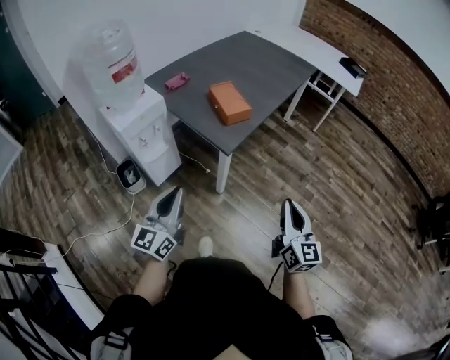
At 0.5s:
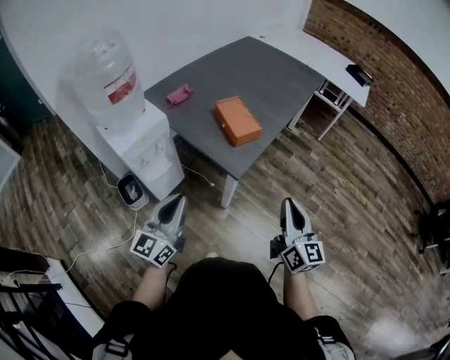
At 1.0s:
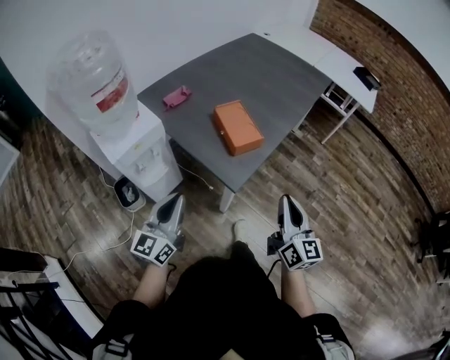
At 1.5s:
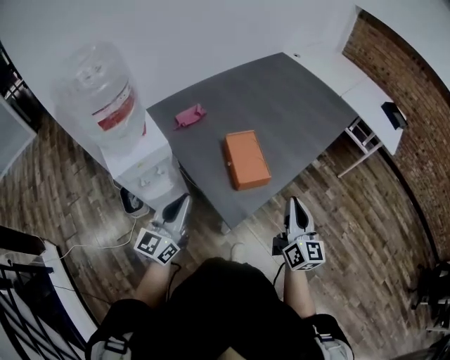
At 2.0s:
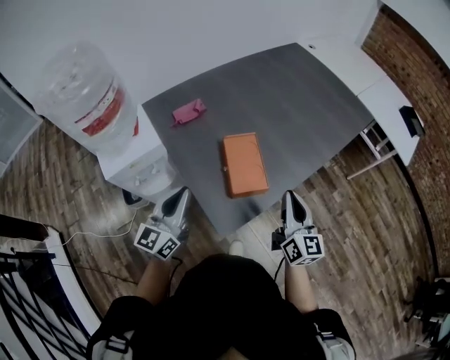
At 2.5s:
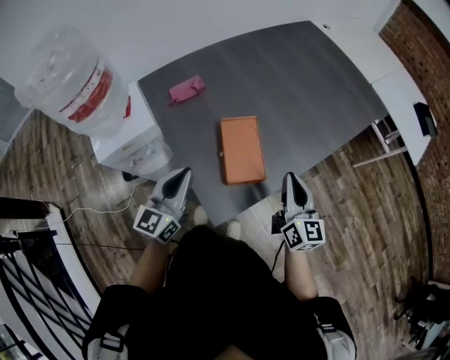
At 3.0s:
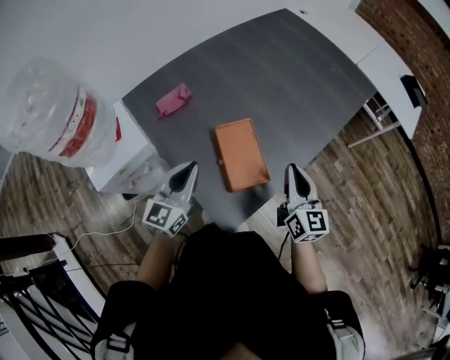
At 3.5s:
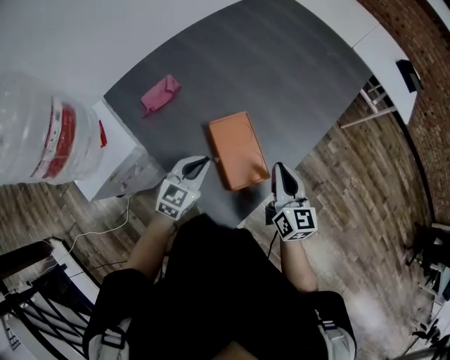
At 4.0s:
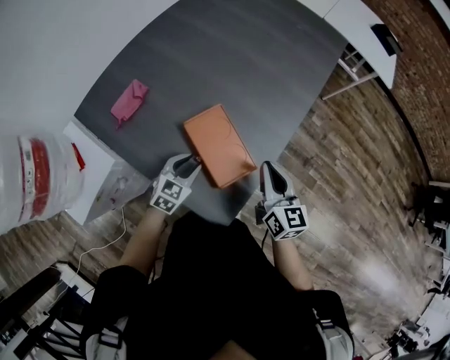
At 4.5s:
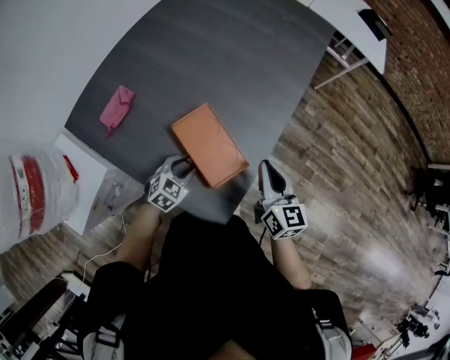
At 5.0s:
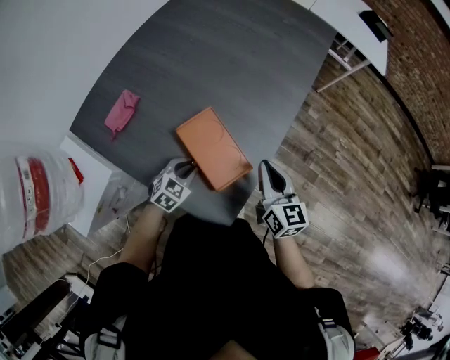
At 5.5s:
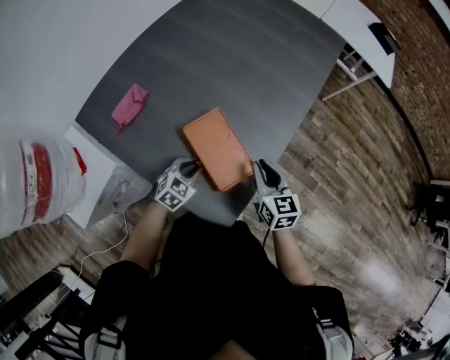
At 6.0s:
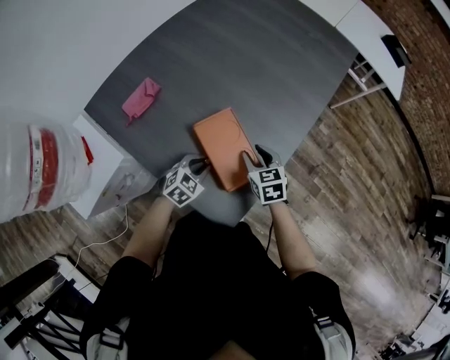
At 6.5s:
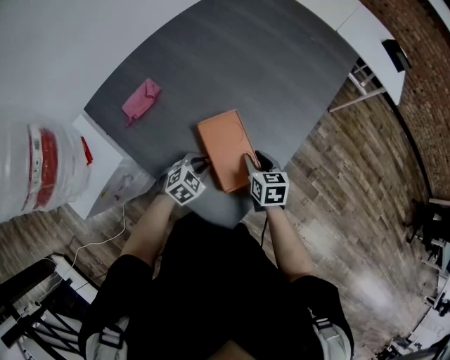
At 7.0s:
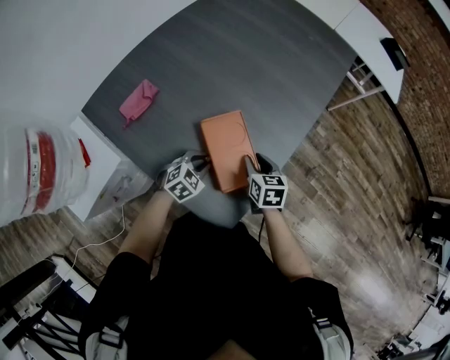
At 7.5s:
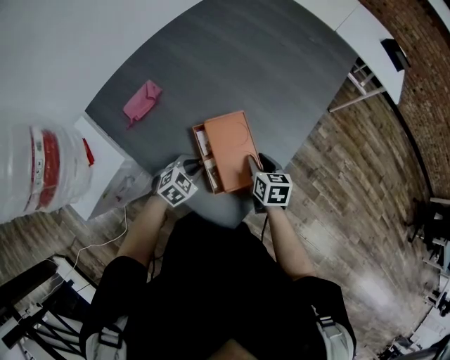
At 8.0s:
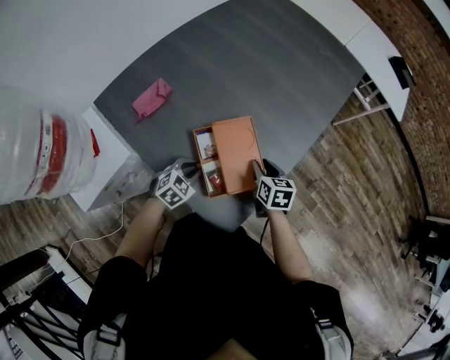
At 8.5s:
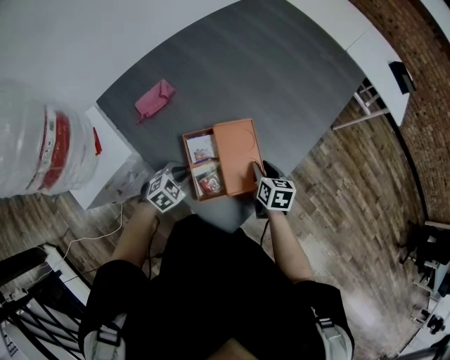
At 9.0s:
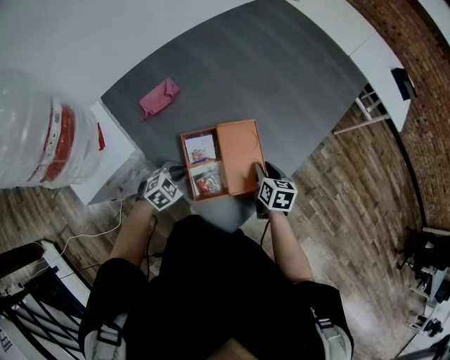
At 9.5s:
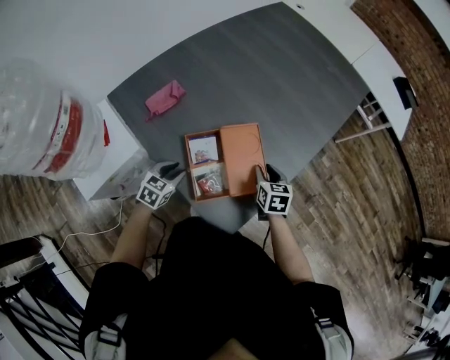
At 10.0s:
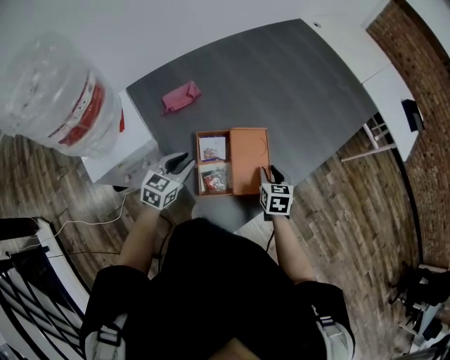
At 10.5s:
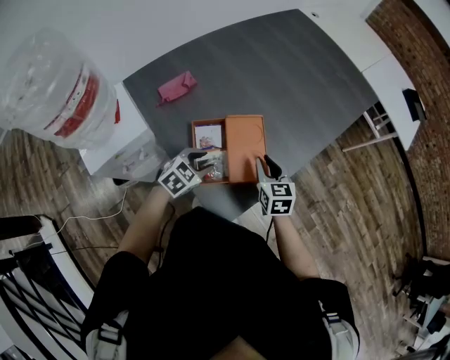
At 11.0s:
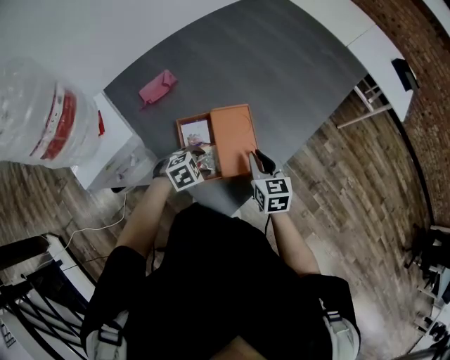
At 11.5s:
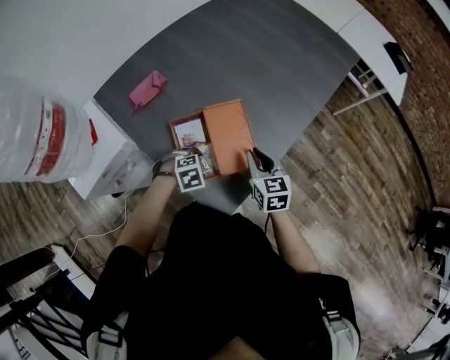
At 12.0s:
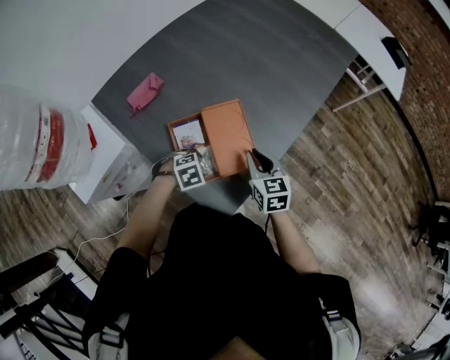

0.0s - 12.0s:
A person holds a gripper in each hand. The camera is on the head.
0.0s - 2.0s: Both grippers travel together forward, some 35 cm.
2.0s - 4.0s: The right gripper goes roughly 5 cm downward, and changes its angle by some 20 degrees. The left gripper shifts approximately 20 cm downward, tilts its fingers some 40 degrees downward, and opens.
4.0s - 6.0s: The right gripper shifts about 15 cm downward and to the left, changes its angle by about 30 degrees, and opens up.
8.0s - 10.0s: The left gripper heads upward and to the left, covering some 15 cm, and swivels about 40 degrees.
10.0s - 12.0s: The right gripper shifts by about 5 cm. Meanwhile the left gripper goes about 10 cm downward, tips its fingers downward by some 50 degrees, and opens its fingers.

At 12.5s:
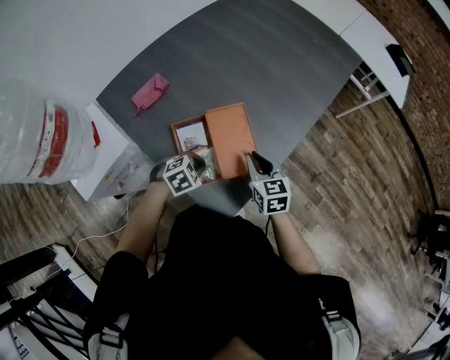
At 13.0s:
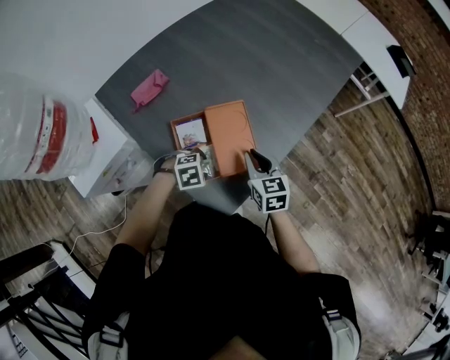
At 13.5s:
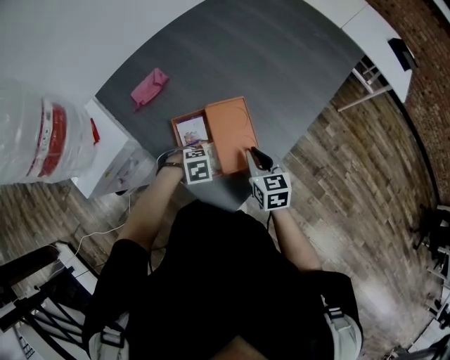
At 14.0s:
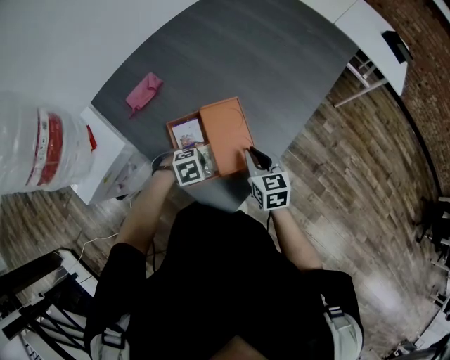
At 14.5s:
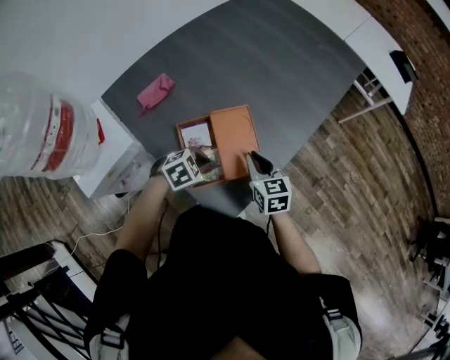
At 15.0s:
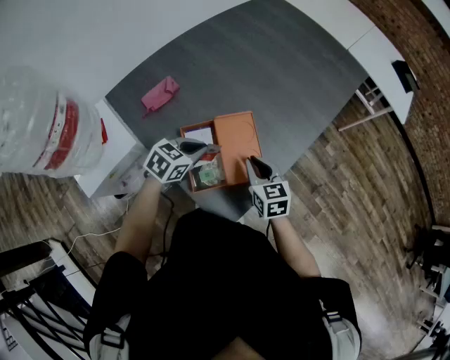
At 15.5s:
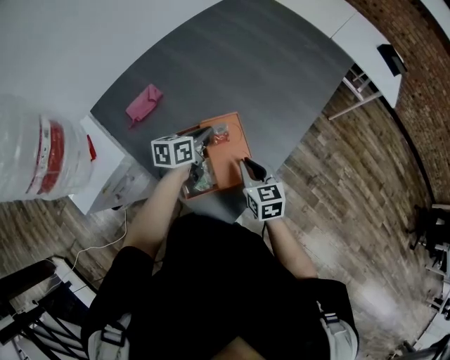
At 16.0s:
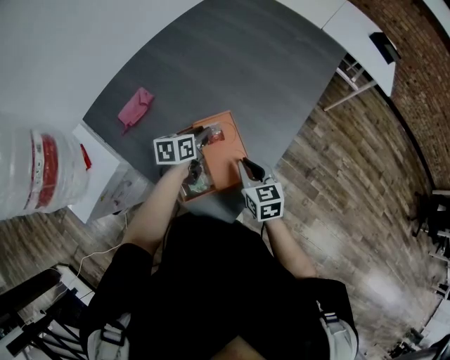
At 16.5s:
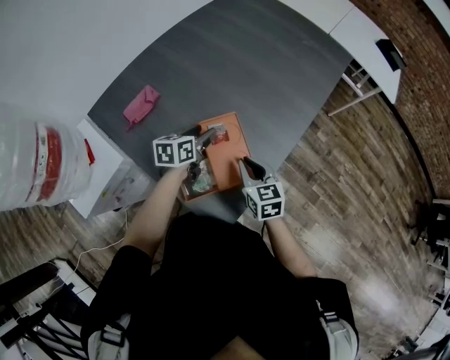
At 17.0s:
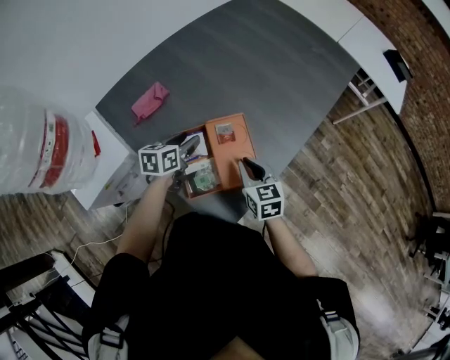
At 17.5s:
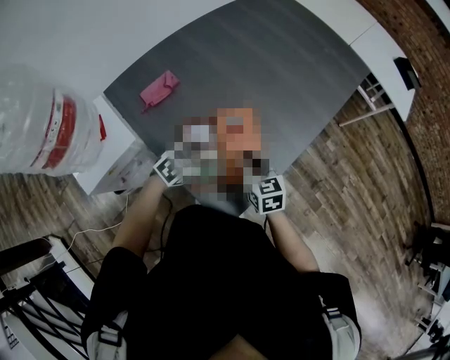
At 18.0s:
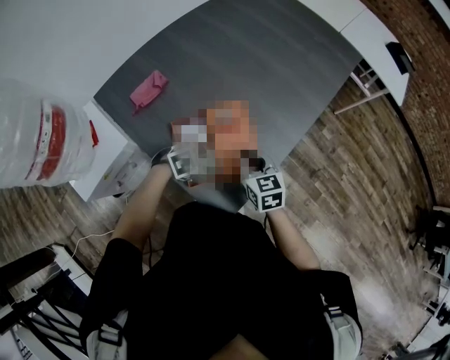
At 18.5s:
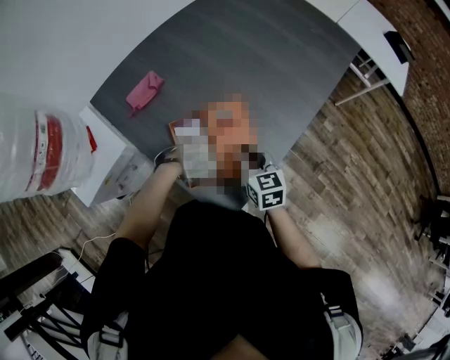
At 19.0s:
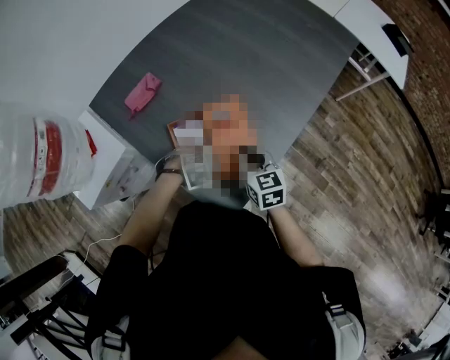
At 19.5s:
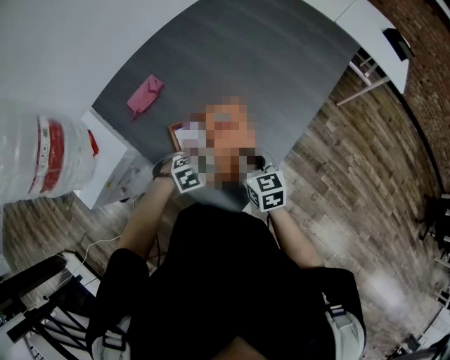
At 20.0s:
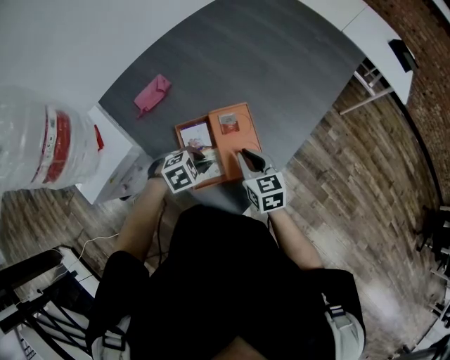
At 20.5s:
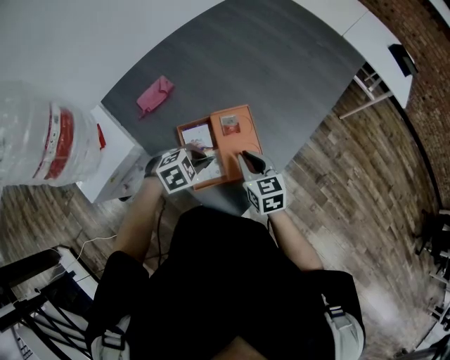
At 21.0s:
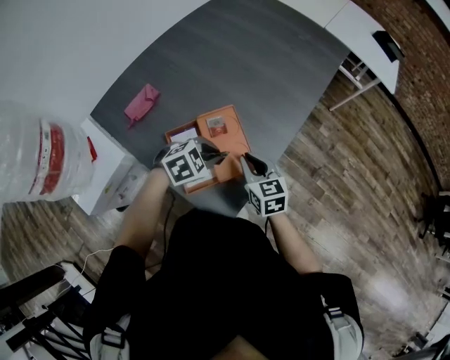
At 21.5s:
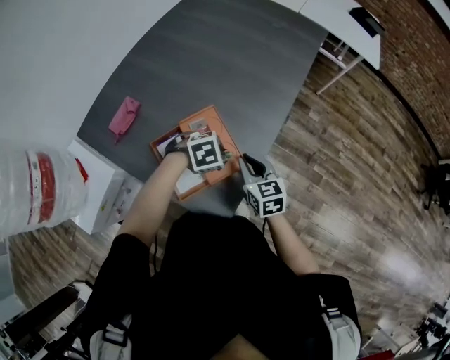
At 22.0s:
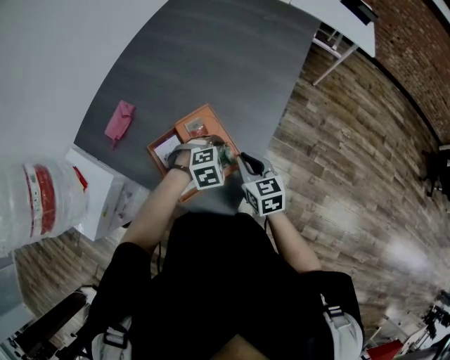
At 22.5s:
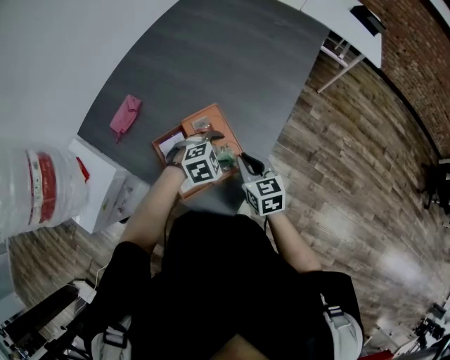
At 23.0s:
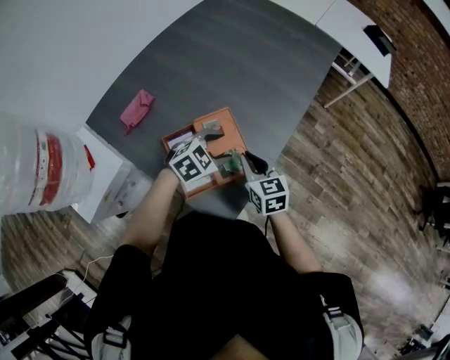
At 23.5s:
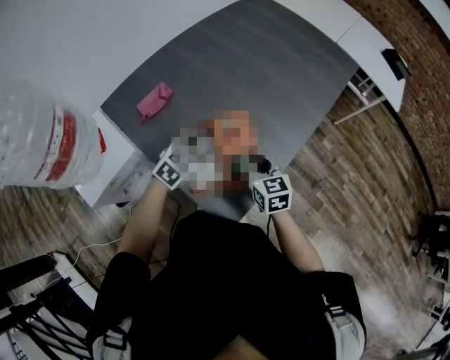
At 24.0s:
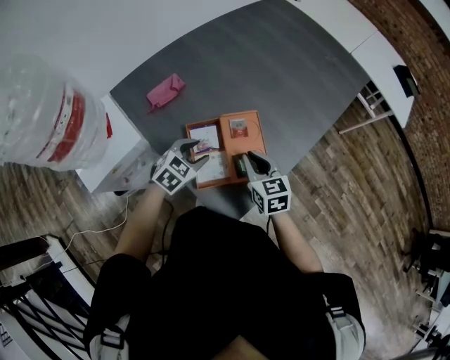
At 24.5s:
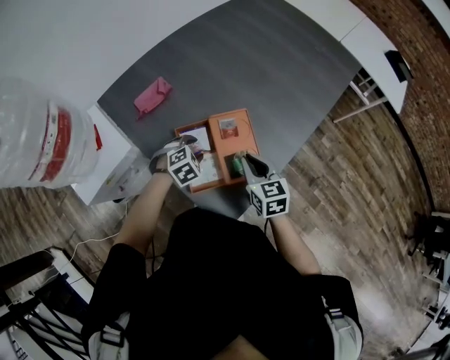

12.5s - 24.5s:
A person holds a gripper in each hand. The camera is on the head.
12.5s - 14.5s: The left gripper opens and closes again.
14.5s - 16.5s: The left gripper heads forward, covering about 15 cm, rolls counterclockwise, seen from behind, by about 50 degrees, and opens its fingers.
16.5s - 18.5s: The left gripper ends up approximately 20 cm from where it was, and angles its fingers downward, by about 40 degrees.
18.5s - 20.5s: The left gripper goes roughly 10 cm upward, turns by roughly 20 degrees, and closes.
20.5s - 22.5s: The left gripper is displaced to the right and forward by about 15 cm, and opens, while the right gripper moves to the right, roughly 5 cm.
22.5s - 24.5s: The left gripper is displaced to the left by some 15 cm, swivels about 30 degrees, and closes up.

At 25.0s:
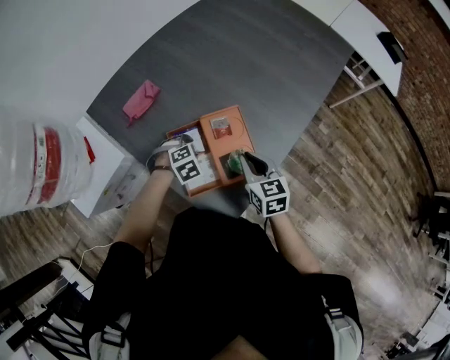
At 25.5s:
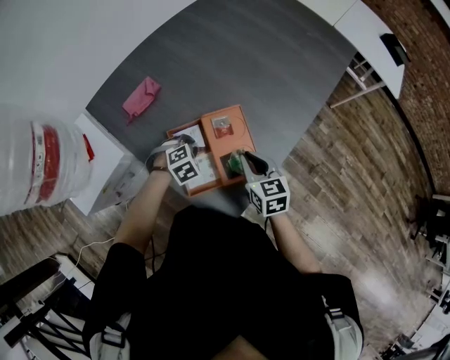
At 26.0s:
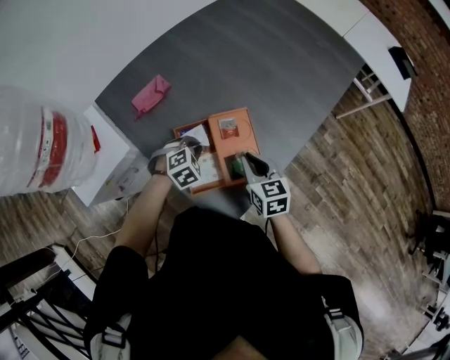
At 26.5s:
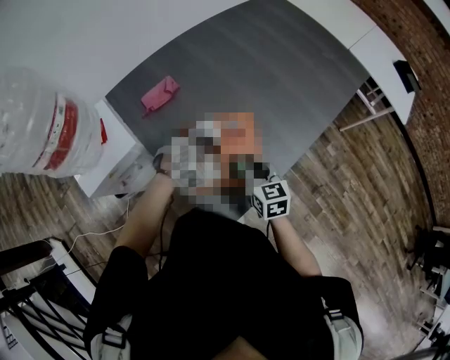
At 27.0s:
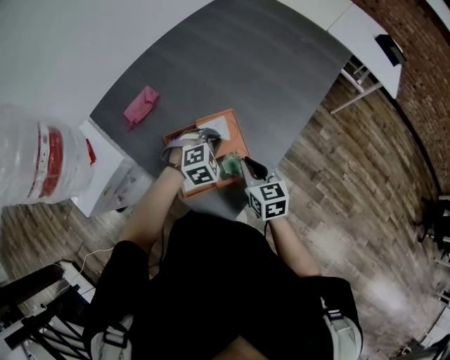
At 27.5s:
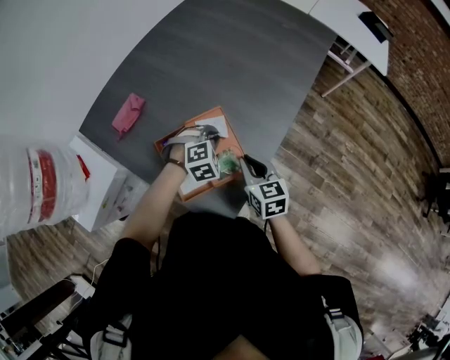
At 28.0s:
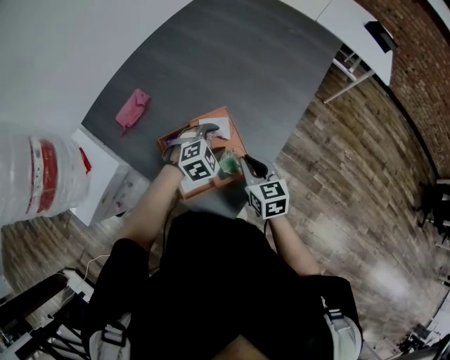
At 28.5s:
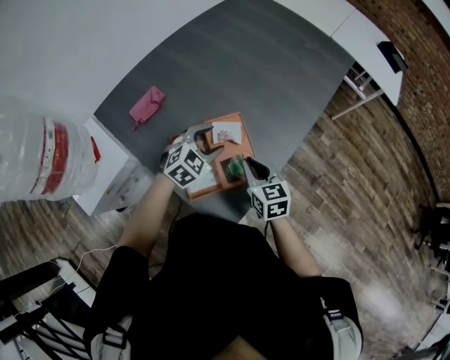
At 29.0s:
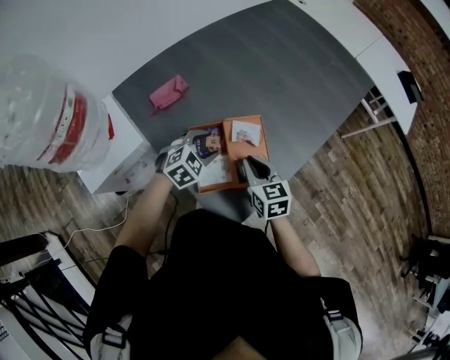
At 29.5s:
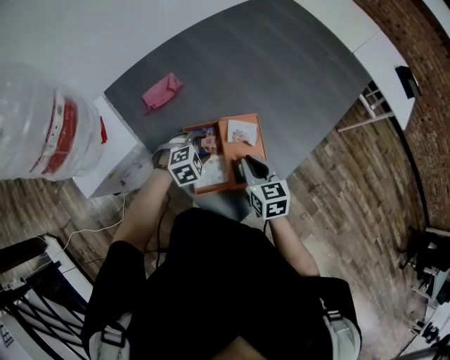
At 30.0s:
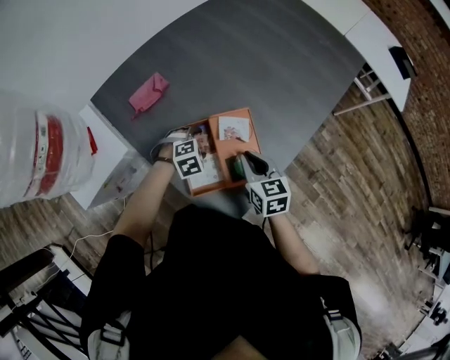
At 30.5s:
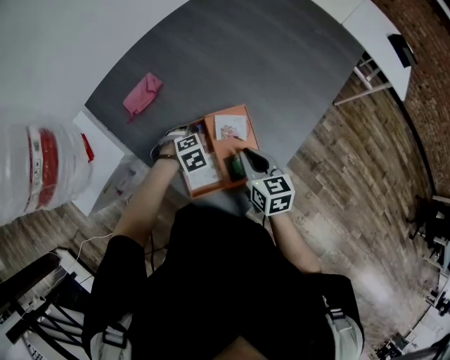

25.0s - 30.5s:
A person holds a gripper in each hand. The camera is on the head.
25.0s - 27.0s: The left gripper heads upward and to the right, covering some 15 cm, swivels some 20 degrees, and closes up.
27.0s - 28.5s: The left gripper rotates about 20 degrees, and opens its fingers.
28.5s - 30.5s: The left gripper shifts approximately 15 cm downward and to the left, and tilts its fingers roughly 40 degrees downward.
